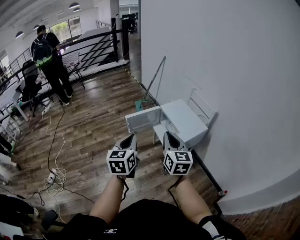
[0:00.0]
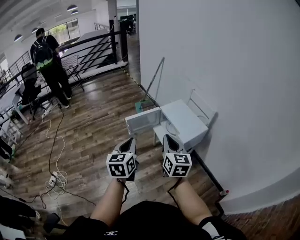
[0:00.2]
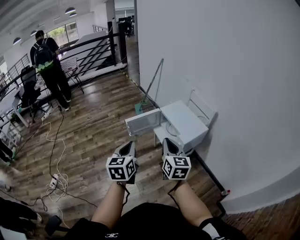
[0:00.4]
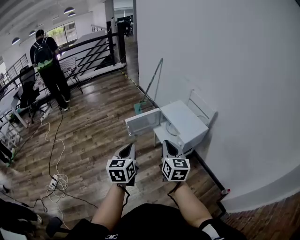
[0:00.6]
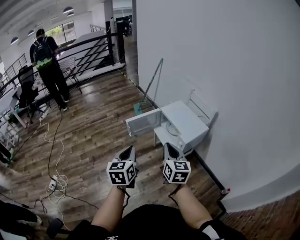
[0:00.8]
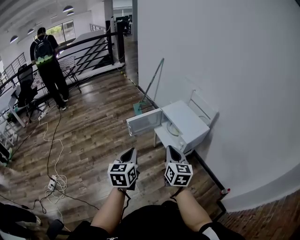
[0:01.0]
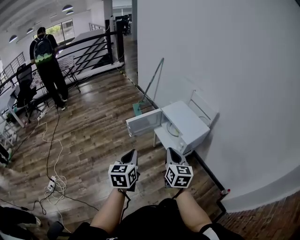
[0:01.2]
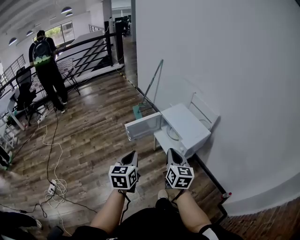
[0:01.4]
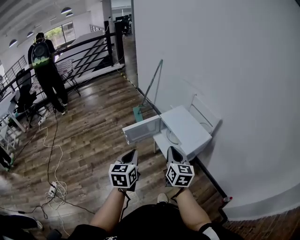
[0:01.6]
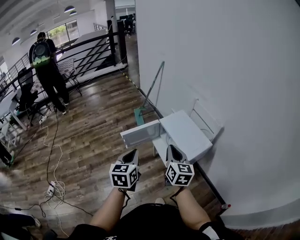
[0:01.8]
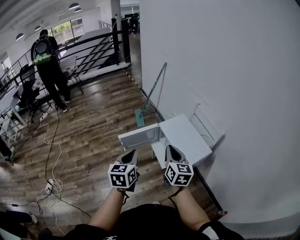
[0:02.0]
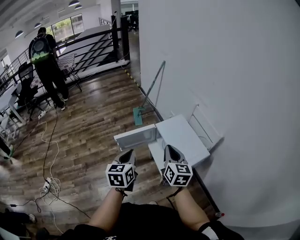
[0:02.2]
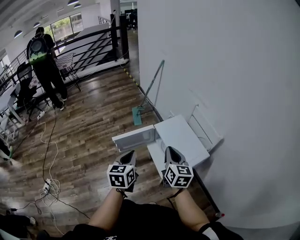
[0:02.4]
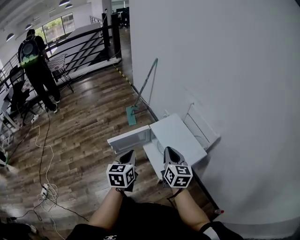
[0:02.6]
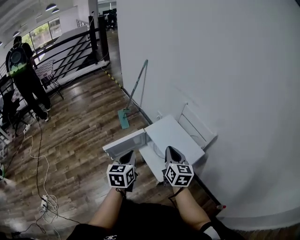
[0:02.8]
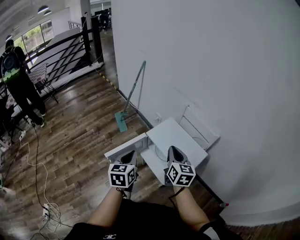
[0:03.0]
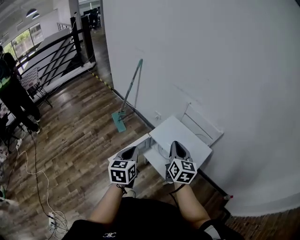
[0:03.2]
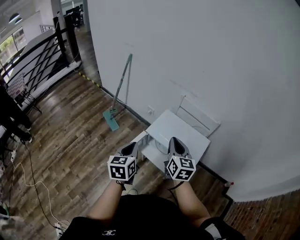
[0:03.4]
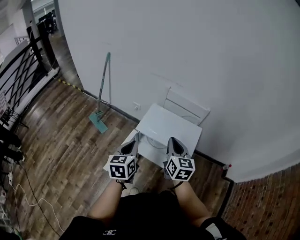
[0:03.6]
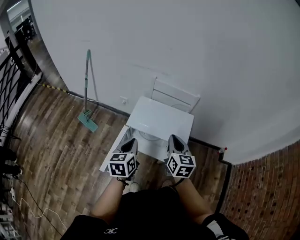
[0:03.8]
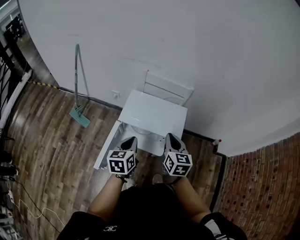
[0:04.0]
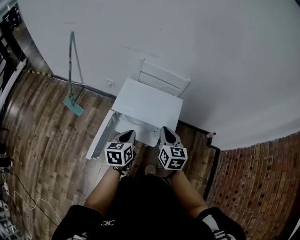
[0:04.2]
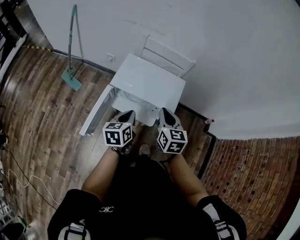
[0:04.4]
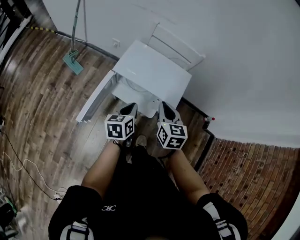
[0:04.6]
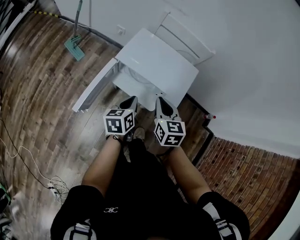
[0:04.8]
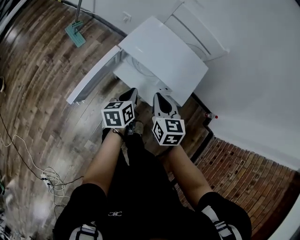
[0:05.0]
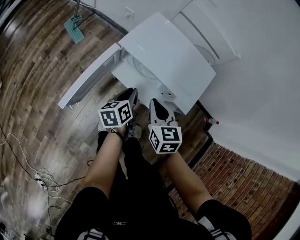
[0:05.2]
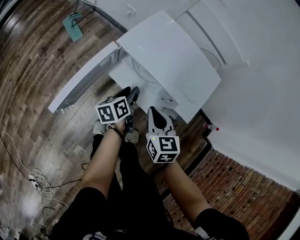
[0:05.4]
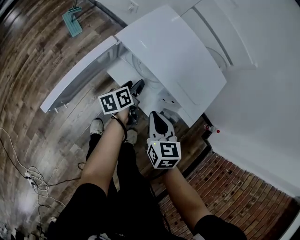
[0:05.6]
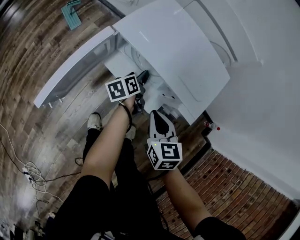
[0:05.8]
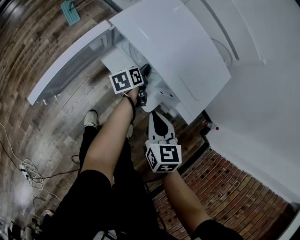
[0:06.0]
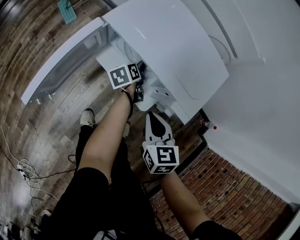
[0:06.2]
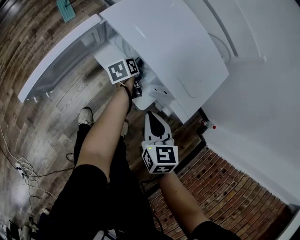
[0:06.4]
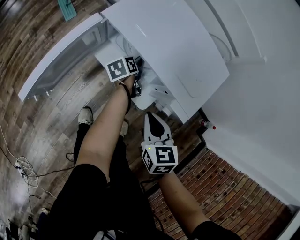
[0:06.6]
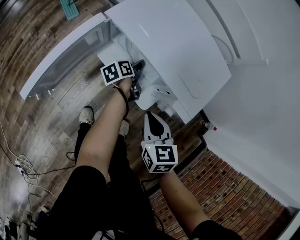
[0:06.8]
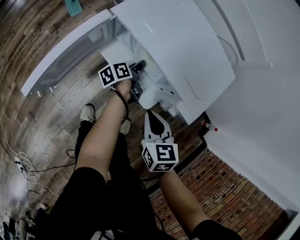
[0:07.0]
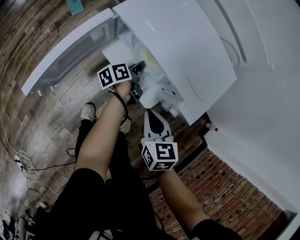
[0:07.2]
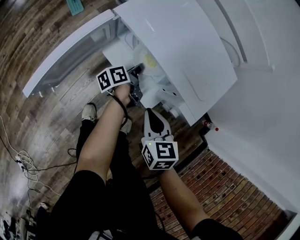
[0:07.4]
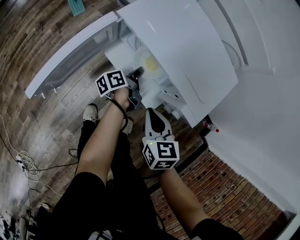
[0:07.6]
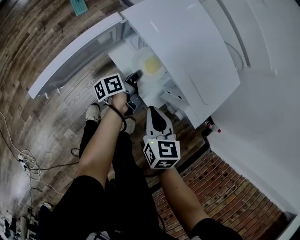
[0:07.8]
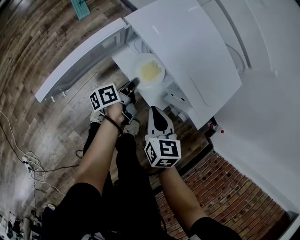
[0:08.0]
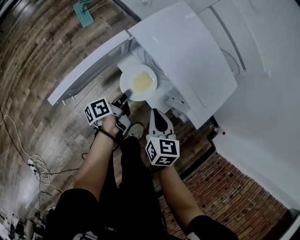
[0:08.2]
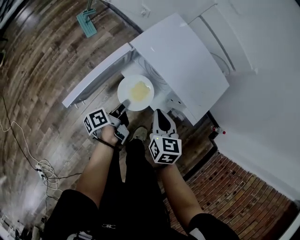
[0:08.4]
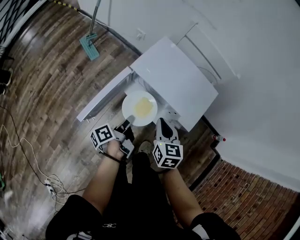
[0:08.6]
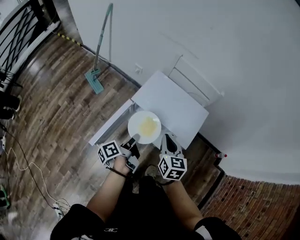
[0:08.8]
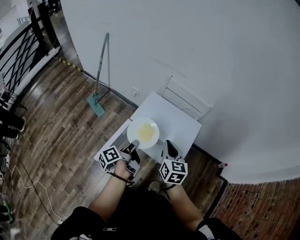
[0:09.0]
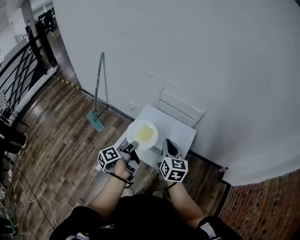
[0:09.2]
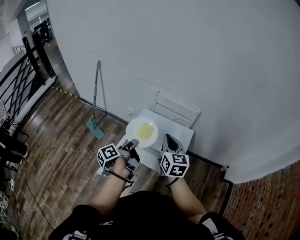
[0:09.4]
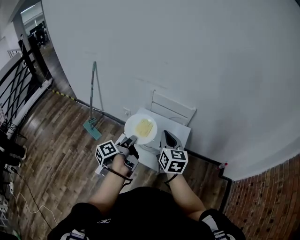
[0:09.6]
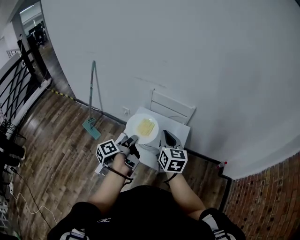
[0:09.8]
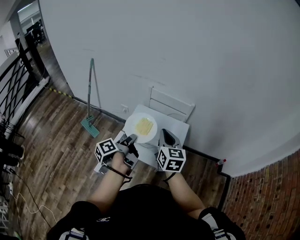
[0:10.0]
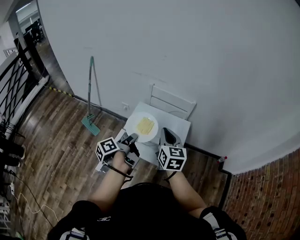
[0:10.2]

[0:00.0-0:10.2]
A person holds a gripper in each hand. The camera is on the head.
0:00.0 to 0:01.4: Both grippers move downward, roughly 5 cm.
0:01.4 to 0:03.0: Both grippers travel together forward, about 30 cm.
0:03.0 to 0:04.4: The left gripper goes approximately 10 cm downward, and changes its angle by roughly 40 degrees. Meanwhile the right gripper travels downward by about 5 cm, and swivels some 30 degrees.
0:04.4 to 0:05.8: The two grippers go approximately 30 cm downward. The right gripper rotates roughly 30 degrees; the left gripper rotates approximately 40 degrees, and opens.
0:05.8 to 0:07.2: The left gripper closes up.
0:07.2 to 0:08.8: The left gripper moves upward and backward, roughly 35 cm. The right gripper shifts roughly 20 cm upward, and turns by approximately 20 degrees.
0:08.8 to 0:10.2: The left gripper moves upward and forward, some 20 cm, while the right gripper travels upward by about 15 cm.

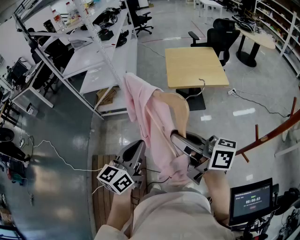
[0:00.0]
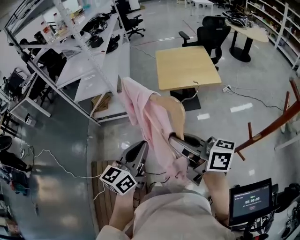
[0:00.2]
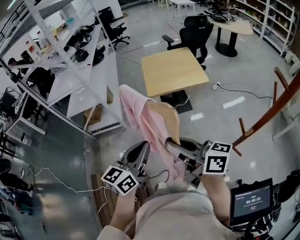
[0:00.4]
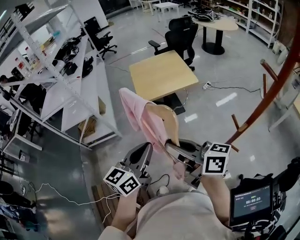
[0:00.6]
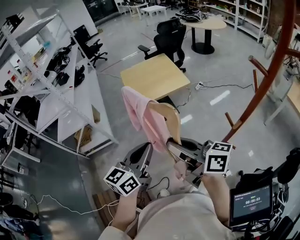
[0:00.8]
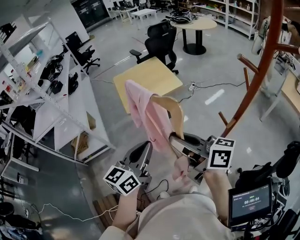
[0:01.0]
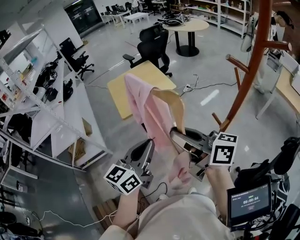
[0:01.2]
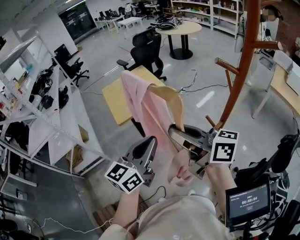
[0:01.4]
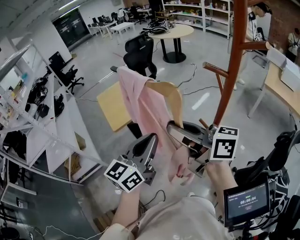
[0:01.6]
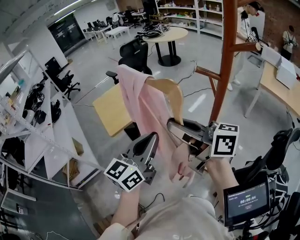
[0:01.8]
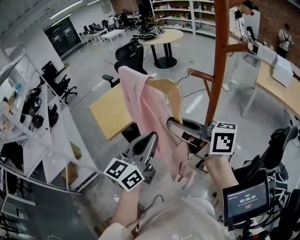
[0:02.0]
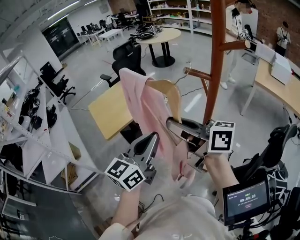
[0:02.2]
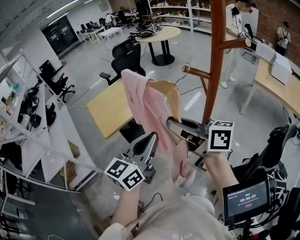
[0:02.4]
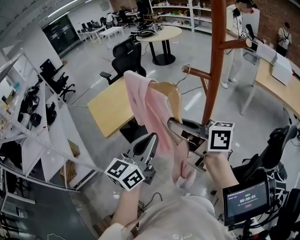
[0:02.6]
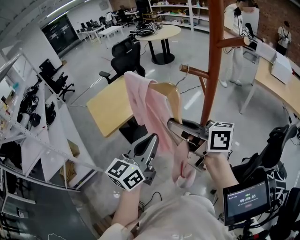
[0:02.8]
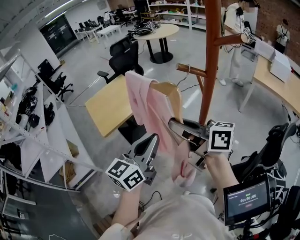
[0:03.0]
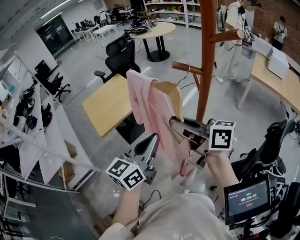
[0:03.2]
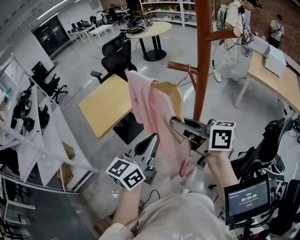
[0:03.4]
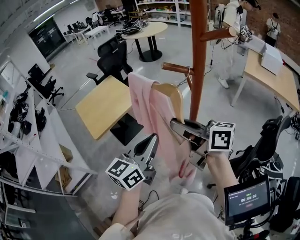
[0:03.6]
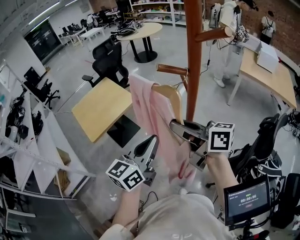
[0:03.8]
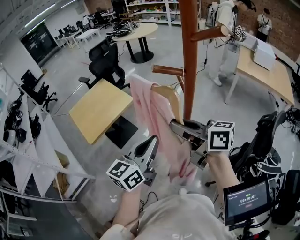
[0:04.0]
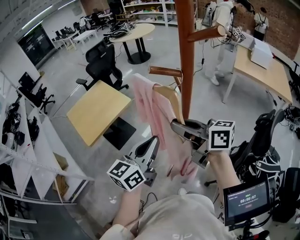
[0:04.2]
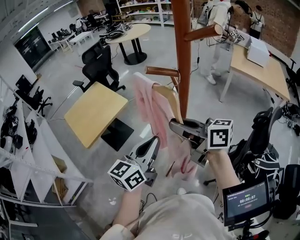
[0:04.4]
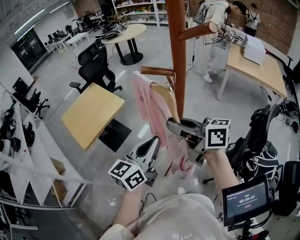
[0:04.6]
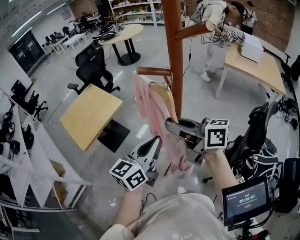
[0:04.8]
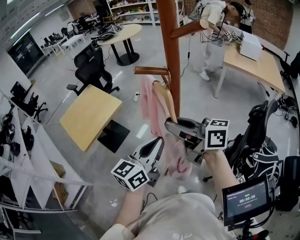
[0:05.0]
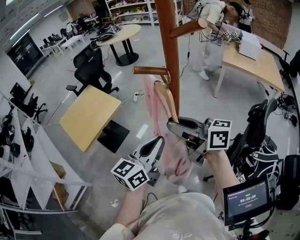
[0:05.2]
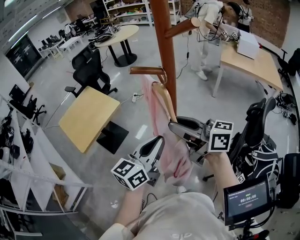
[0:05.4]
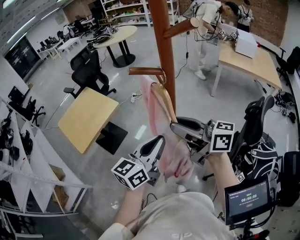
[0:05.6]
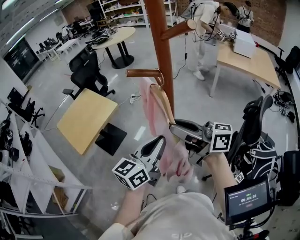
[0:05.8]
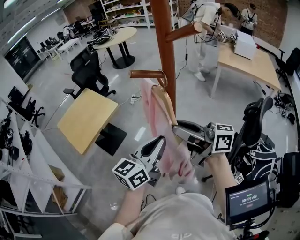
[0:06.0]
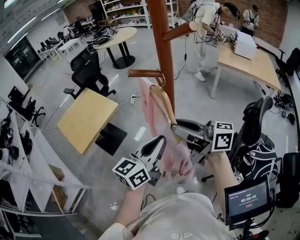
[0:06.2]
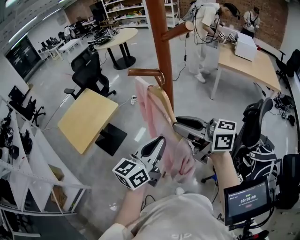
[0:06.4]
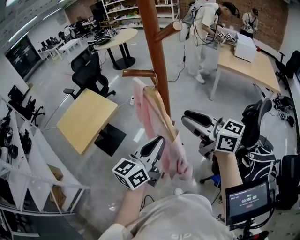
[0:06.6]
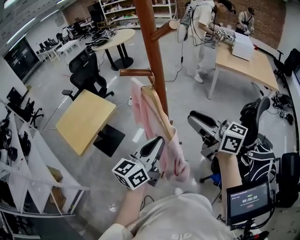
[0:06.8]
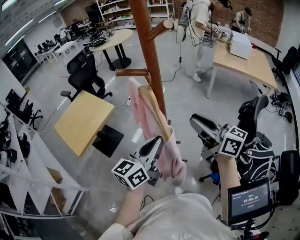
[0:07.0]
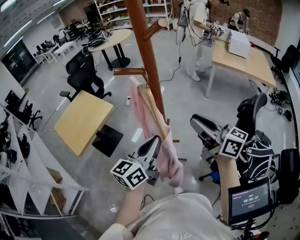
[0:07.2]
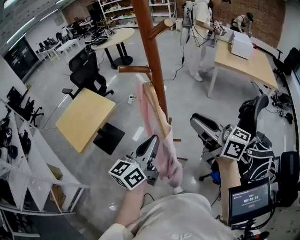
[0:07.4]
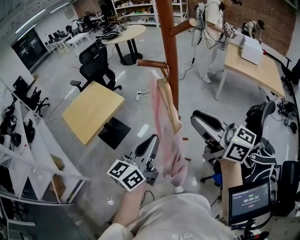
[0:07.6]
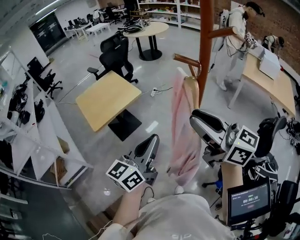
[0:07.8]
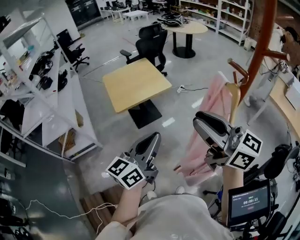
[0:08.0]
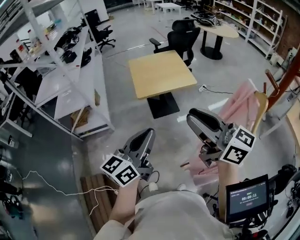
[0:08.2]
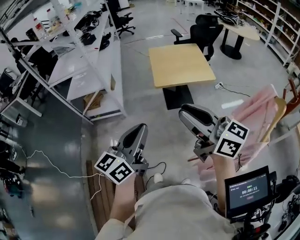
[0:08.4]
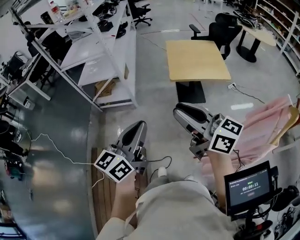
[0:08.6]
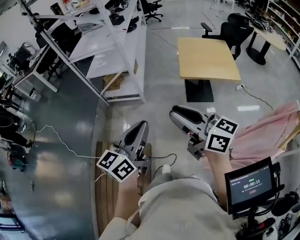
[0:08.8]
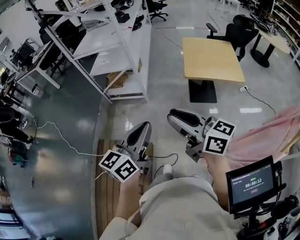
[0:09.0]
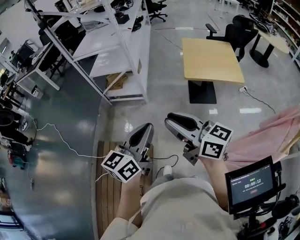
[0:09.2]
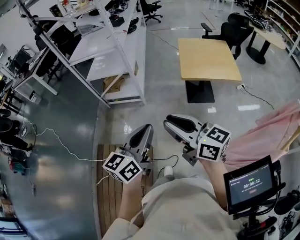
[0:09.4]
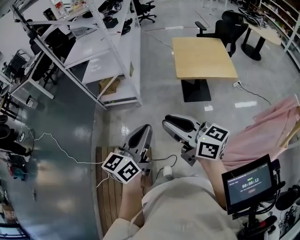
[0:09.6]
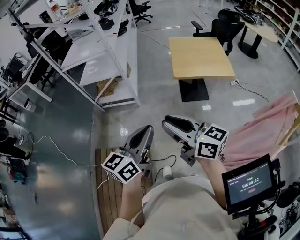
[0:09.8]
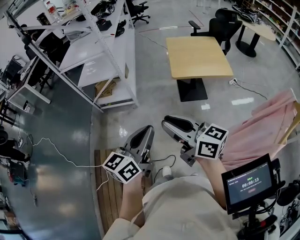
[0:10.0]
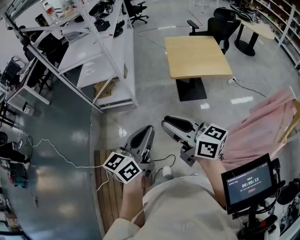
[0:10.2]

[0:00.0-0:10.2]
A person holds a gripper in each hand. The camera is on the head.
0:00.0 to 0:01.4: The right gripper shifts by approximately 25 cm, and turns by approximately 30 degrees, while the left gripper changes place by approximately 30 cm, and turns by about 40 degrees.
0:01.4 to 0:03.0: Both grippers travel together to the right, about 10 cm.
0:03.0 to 0:04.4: Both grippers move to the right, about 10 cm.
0:04.4 to 0:05.8: The right gripper changes place by approximately 5 cm. The left gripper shifts roughly 5 cm to the right.
0:05.8 to 0:07.2: The right gripper moves to the right, about 10 cm, and rotates roughly 30 degrees.
0:07.2 to 0:08.8: Both grippers are carried roughly 60 cm. The left gripper turns by some 70 degrees. Meanwhile the right gripper turns by approximately 70 degrees.
0:08.8 to 0:10.2: The grippers stay close to where they were, moving slightly.

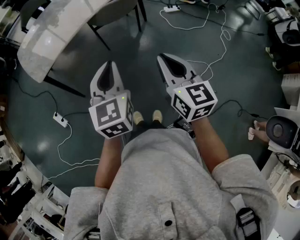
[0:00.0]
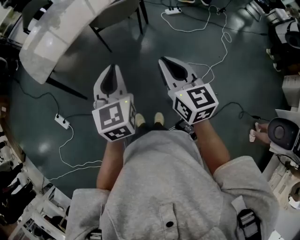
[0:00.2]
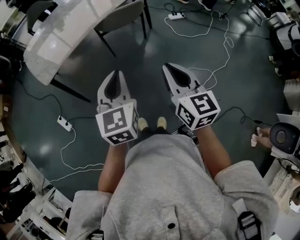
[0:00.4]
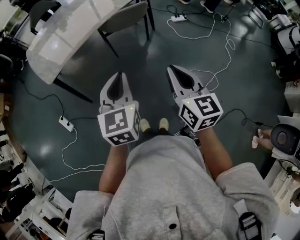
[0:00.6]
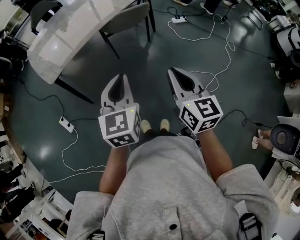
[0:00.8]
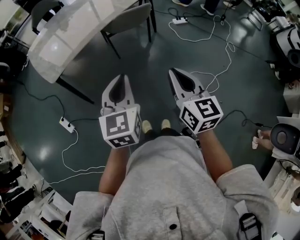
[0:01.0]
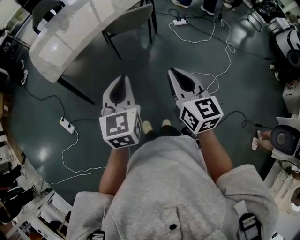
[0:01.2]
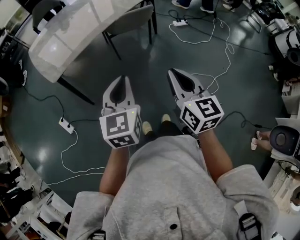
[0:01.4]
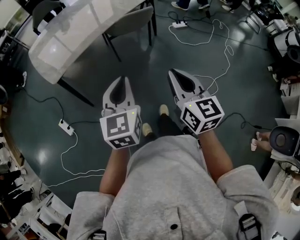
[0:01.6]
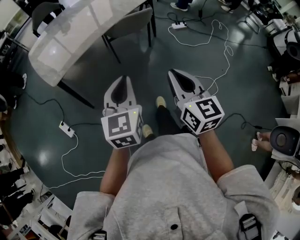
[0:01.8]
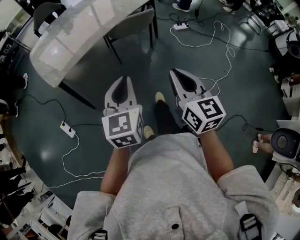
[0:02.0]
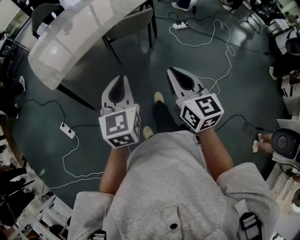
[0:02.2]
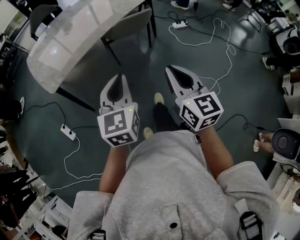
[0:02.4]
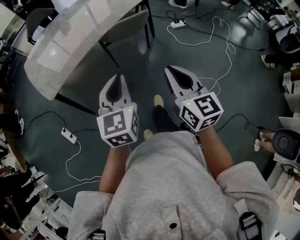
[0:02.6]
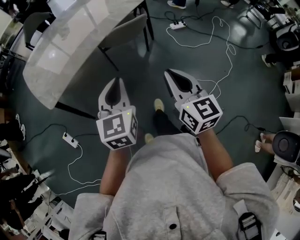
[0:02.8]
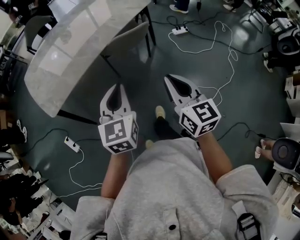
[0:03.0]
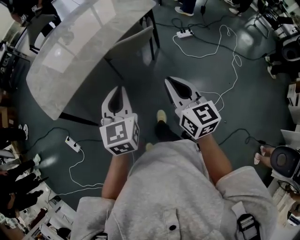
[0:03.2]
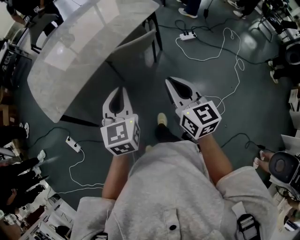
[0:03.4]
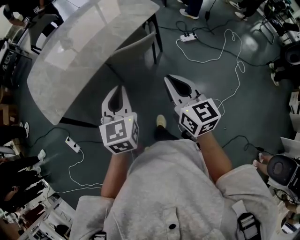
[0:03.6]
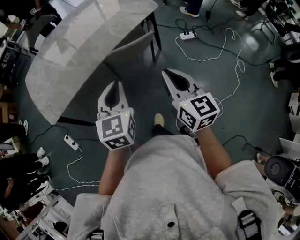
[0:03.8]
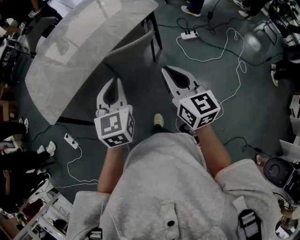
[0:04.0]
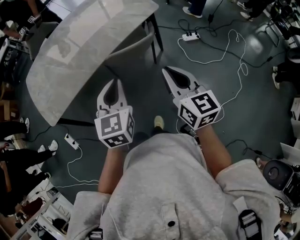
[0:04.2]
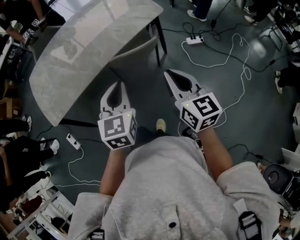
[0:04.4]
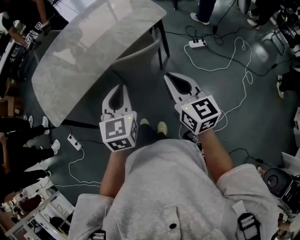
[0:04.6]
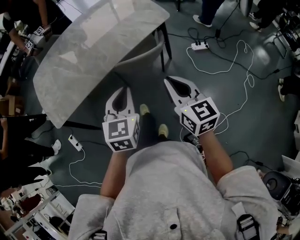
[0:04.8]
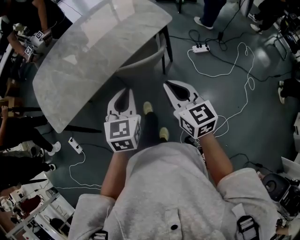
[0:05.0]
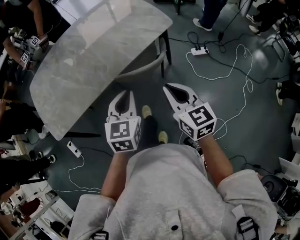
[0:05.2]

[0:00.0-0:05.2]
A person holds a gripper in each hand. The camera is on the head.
0:00.0 to 0:01.8: Both grippers move to the left, some 5 cm.
0:01.8 to 0:03.4: The grippers both shift forward by about 25 cm.
0:03.4 to 0:05.2: The right gripper moves forward, about 20 cm. The left gripper goes approximately 20 cm forward and to the right.
